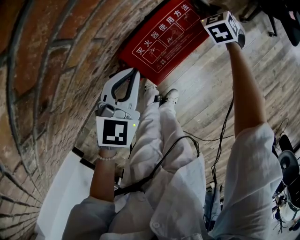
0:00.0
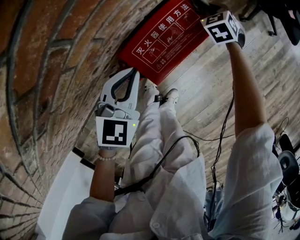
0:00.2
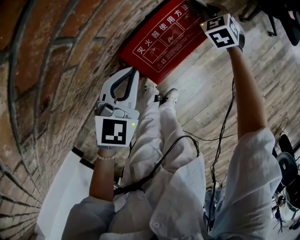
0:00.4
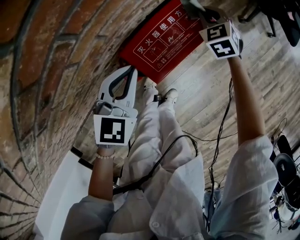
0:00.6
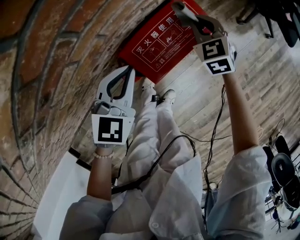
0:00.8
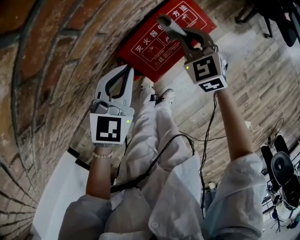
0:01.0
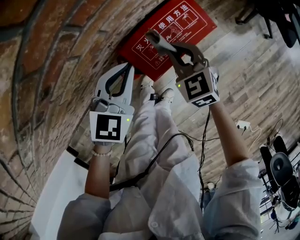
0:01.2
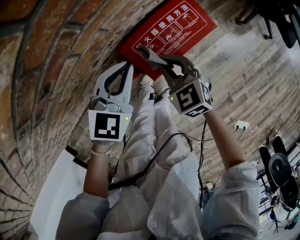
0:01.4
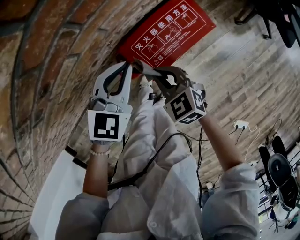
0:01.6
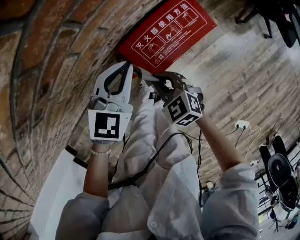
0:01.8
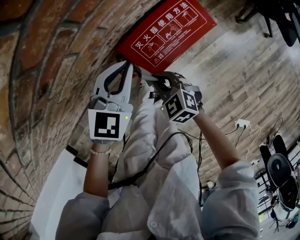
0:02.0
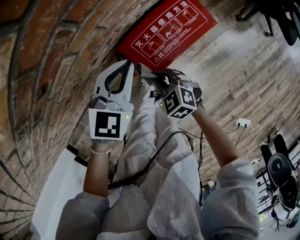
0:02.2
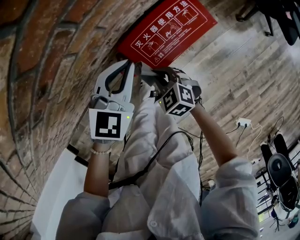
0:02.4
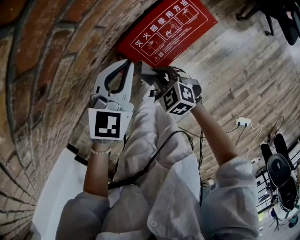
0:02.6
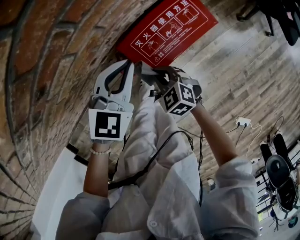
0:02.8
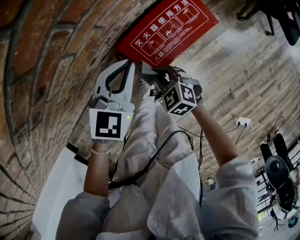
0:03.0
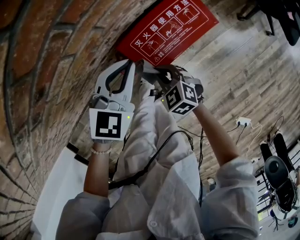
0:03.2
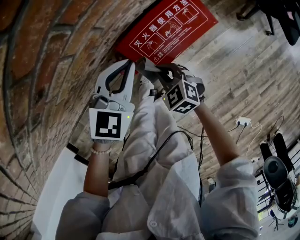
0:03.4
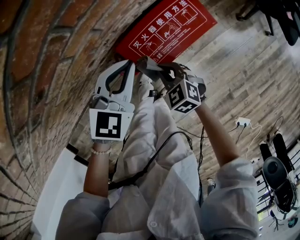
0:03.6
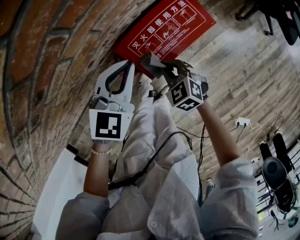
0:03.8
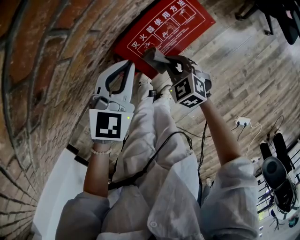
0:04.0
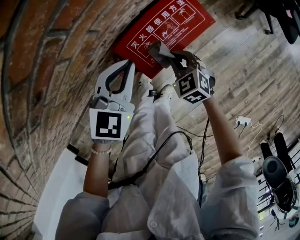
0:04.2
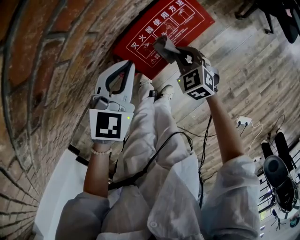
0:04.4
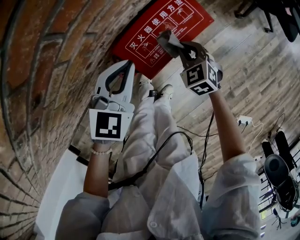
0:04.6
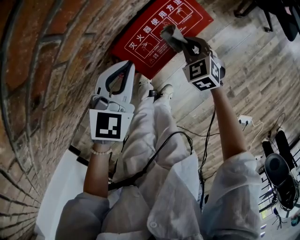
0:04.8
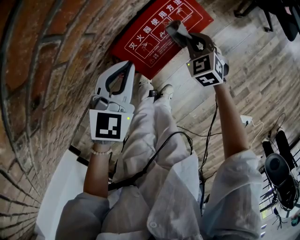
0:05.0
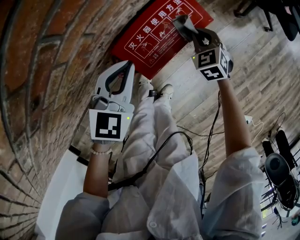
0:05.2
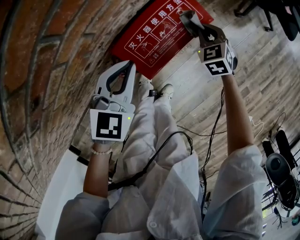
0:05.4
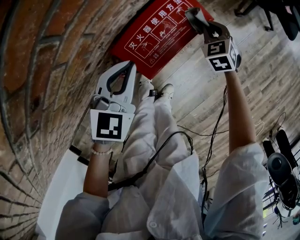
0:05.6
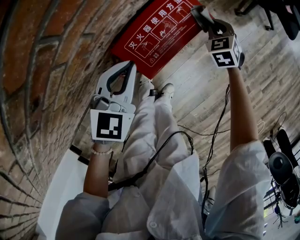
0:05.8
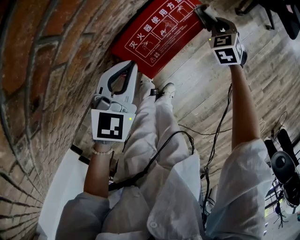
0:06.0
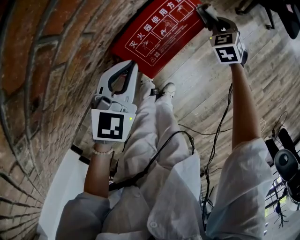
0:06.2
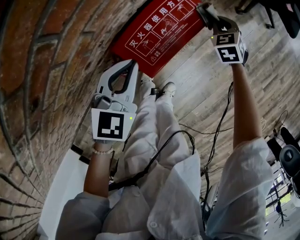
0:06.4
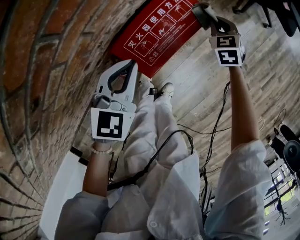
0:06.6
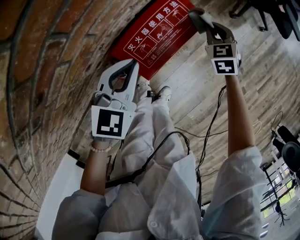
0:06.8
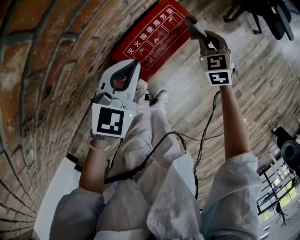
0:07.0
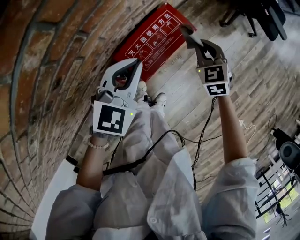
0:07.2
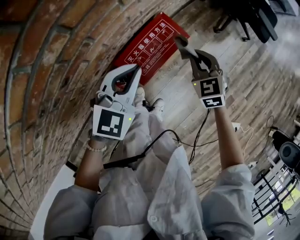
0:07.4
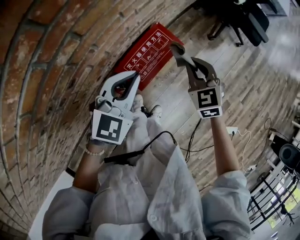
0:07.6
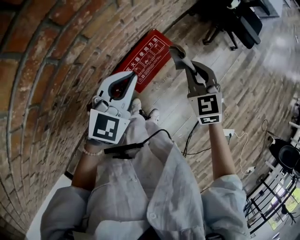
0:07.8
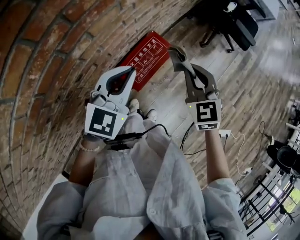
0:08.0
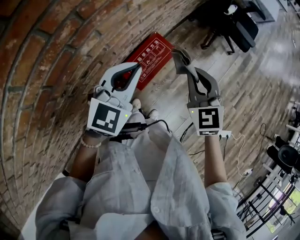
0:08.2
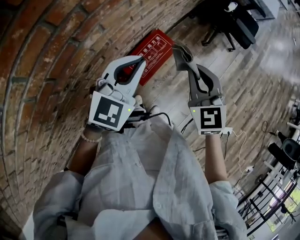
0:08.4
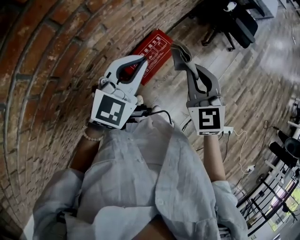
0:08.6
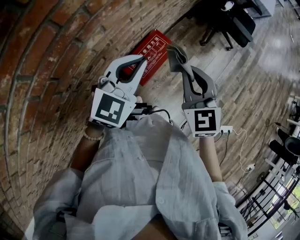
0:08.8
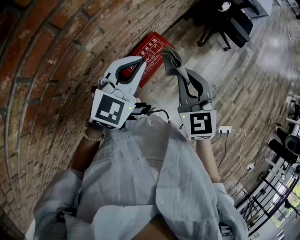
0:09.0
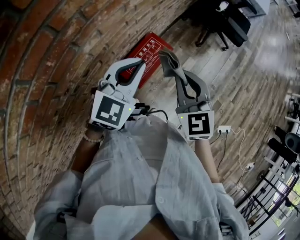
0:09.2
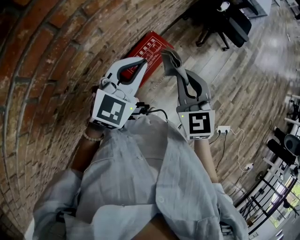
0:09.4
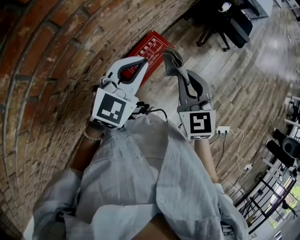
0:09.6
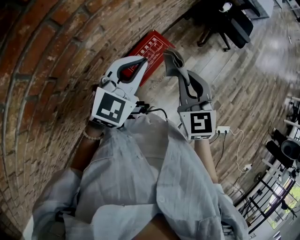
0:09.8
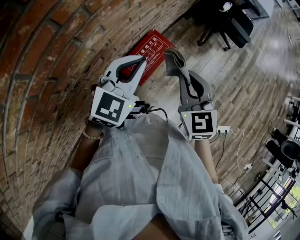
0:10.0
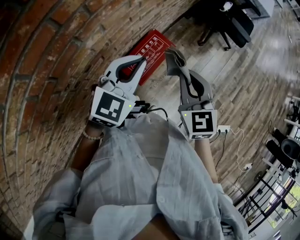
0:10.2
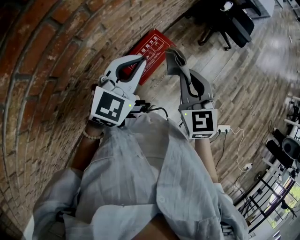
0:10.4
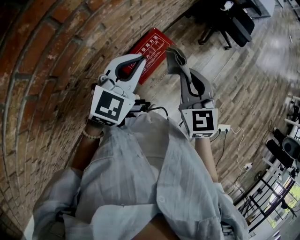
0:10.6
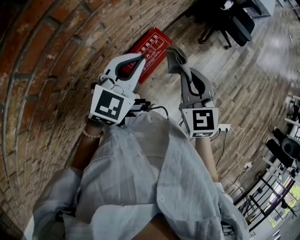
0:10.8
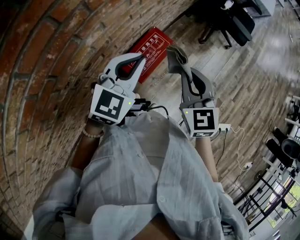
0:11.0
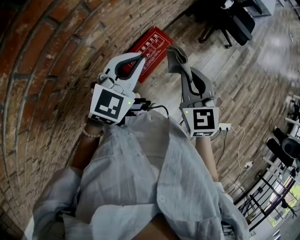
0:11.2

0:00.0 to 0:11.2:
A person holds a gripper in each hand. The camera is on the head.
0:00.0 to 0:01.6: The right gripper moves about 35 cm, and swivels approximately 40 degrees.
0:01.6 to 0:03.2: The right gripper goes approximately 5 cm downward.
0:03.2 to 0:04.8: The right gripper moves to the right and forward, some 15 cm, and rotates some 20 degrees.
0:04.8 to 0:06.4: The right gripper heads forward and to the right, covering roughly 15 cm.
0:06.4 to 0:08.0: The left gripper is displaced upward by some 30 cm; the right gripper shifts roughly 40 cm upward and backward, and changes its angle by some 30 degrees.
0:08.0 to 0:09.6: The left gripper shifts by roughly 5 cm; the right gripper travels backward and upward by roughly 10 cm.
0:09.6 to 0:11.2: The grippers move only a little.

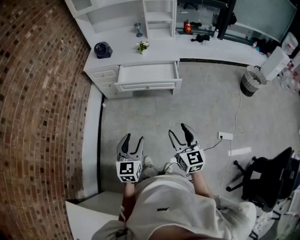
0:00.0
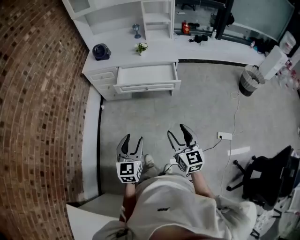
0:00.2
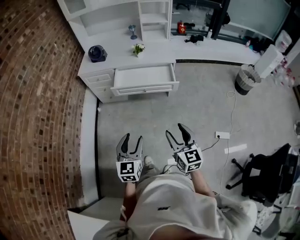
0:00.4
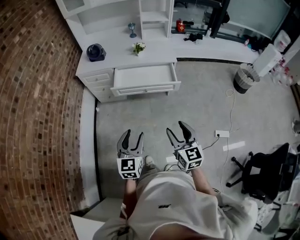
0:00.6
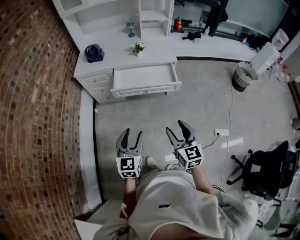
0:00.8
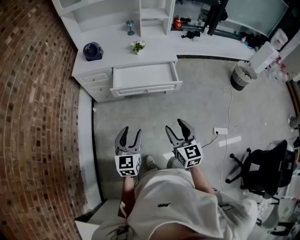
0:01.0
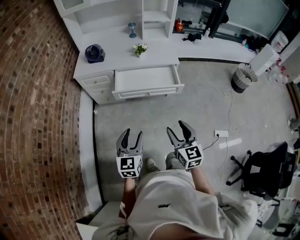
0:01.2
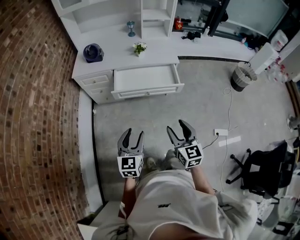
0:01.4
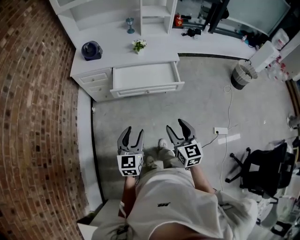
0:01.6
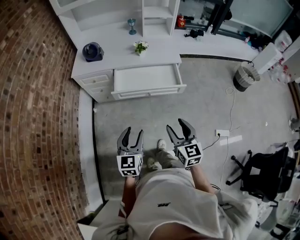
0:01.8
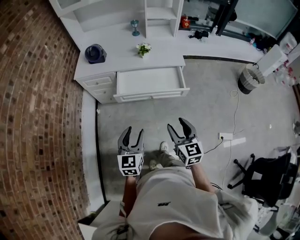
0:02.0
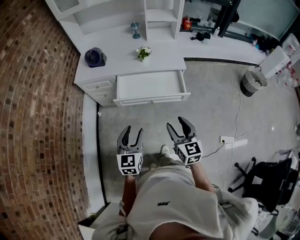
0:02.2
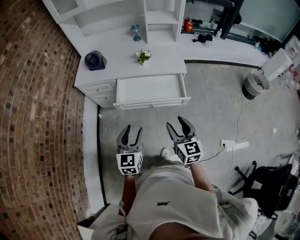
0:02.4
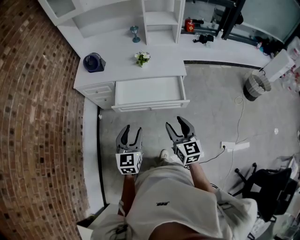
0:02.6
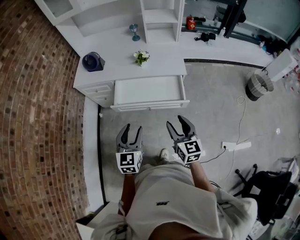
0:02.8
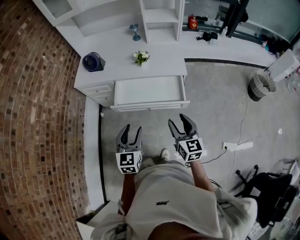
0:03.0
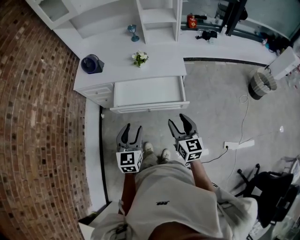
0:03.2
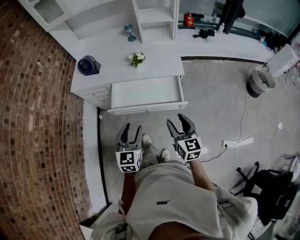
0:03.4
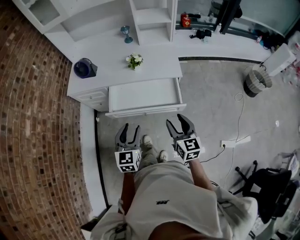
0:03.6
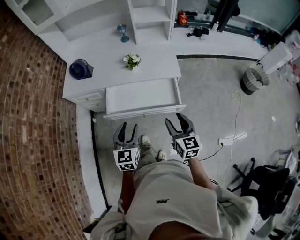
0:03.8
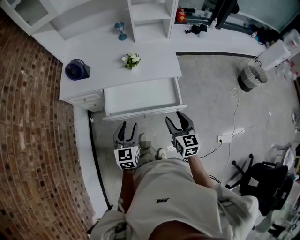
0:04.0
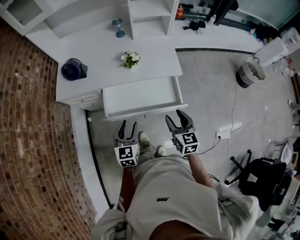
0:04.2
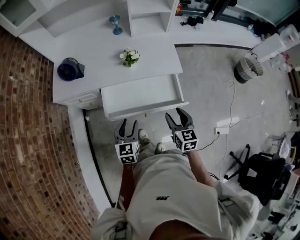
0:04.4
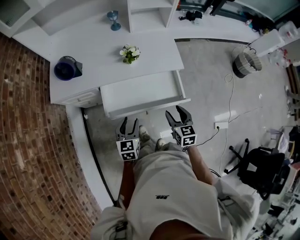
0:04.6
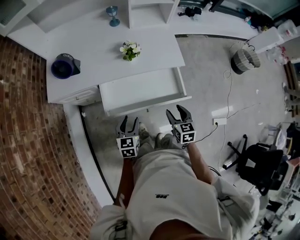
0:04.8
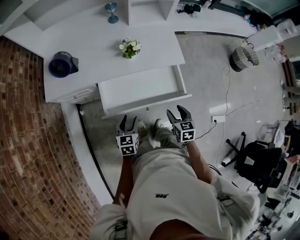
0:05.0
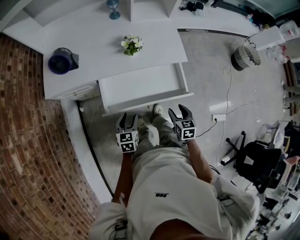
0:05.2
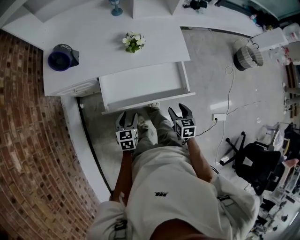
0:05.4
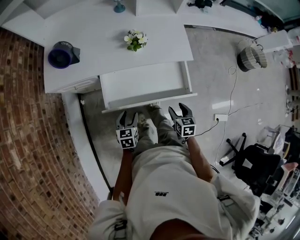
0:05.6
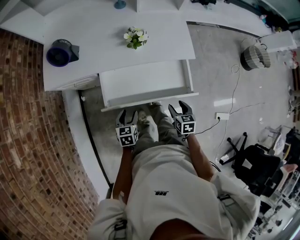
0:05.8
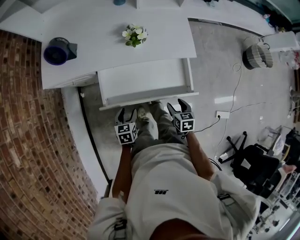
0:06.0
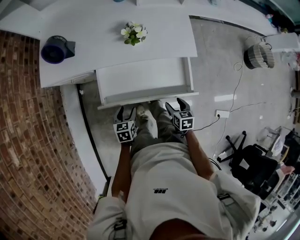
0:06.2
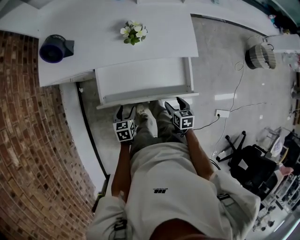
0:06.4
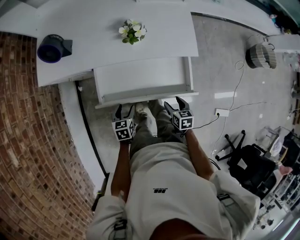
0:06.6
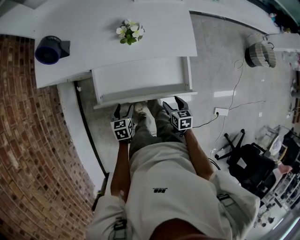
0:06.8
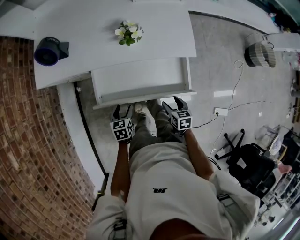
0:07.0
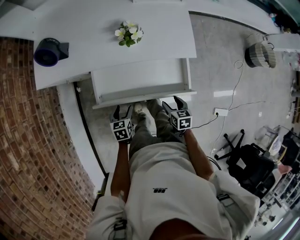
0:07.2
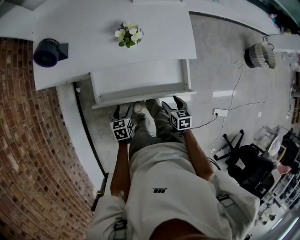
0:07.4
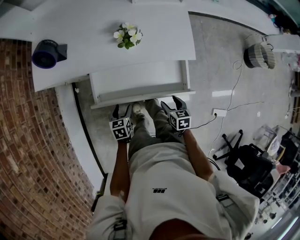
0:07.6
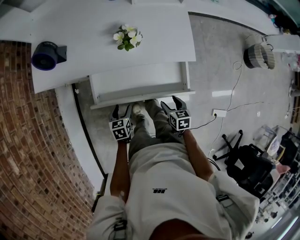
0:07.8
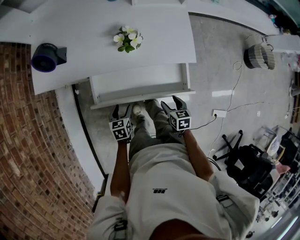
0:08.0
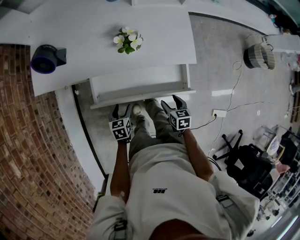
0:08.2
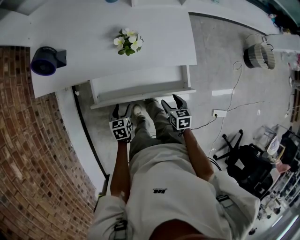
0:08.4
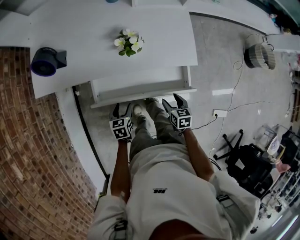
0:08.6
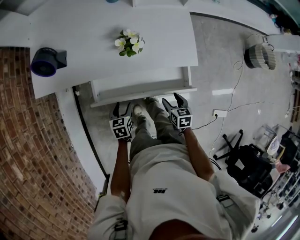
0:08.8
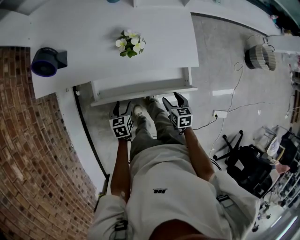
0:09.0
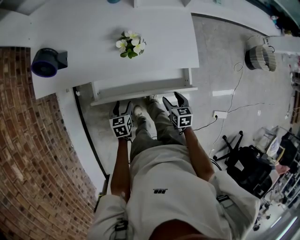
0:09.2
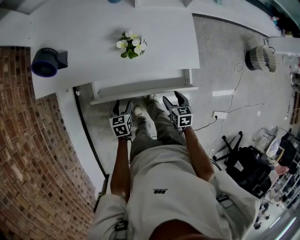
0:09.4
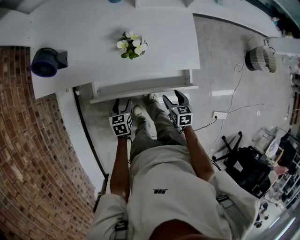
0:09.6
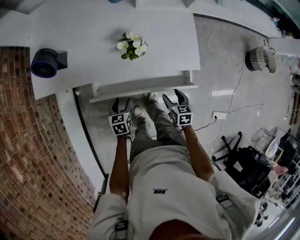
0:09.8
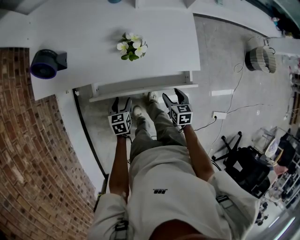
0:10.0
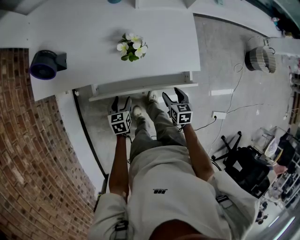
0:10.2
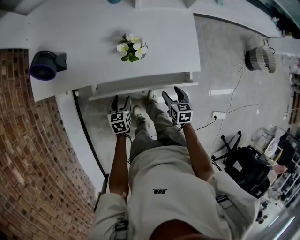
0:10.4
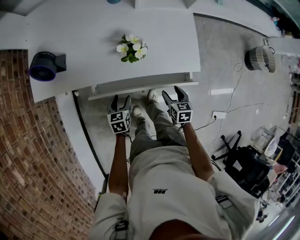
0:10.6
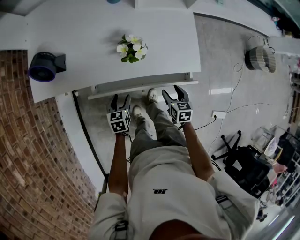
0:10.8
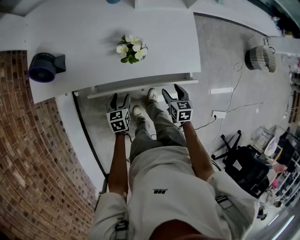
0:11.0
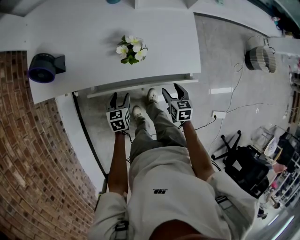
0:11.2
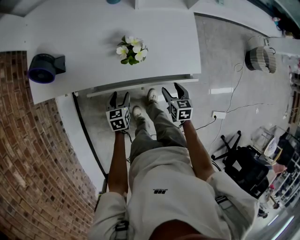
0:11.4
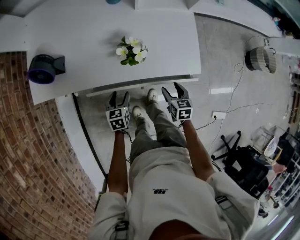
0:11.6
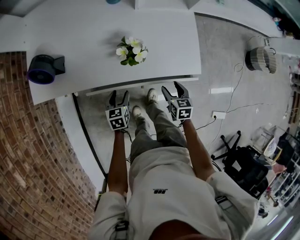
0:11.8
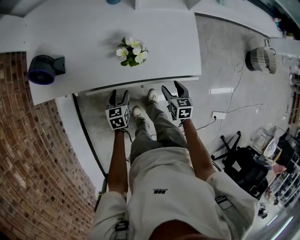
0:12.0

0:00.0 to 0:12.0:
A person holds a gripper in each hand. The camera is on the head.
0:00.0 to 0:01.6: The grippers both shift forward and to the left by about 20 cm.
0:01.6 to 0:03.0: Both grippers travel together forward and to the right, approximately 20 cm.
0:03.0 to 0:04.4: Both grippers move forward and downward, about 20 cm.
0:04.4 to 0:06.0: Both grippers travel together downward, some 20 cm. The right gripper turns by approximately 20 degrees. The left gripper changes its angle by approximately 20 degrees.
0:06.0 to 0:07.6: The left gripper changes place by some 5 cm.
0:07.6 to 0:09.0: Both grippers move forward, some 5 cm.
0:09.0 to 0:10.4: Both grippers travel together forward, roughly 5 cm.
0:10.4 to 0:12.0: The left gripper travels forward by approximately 5 cm.

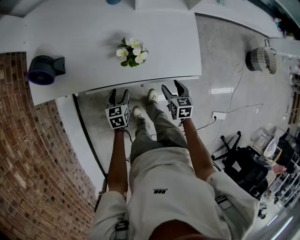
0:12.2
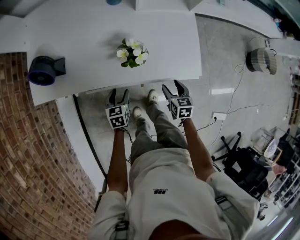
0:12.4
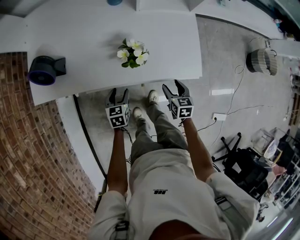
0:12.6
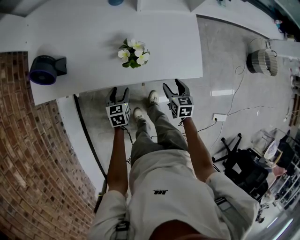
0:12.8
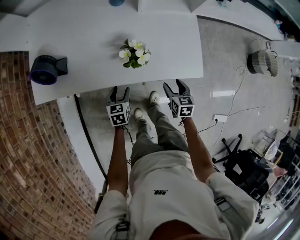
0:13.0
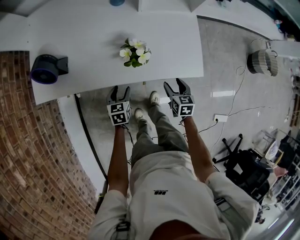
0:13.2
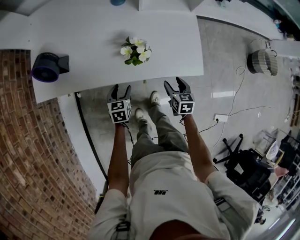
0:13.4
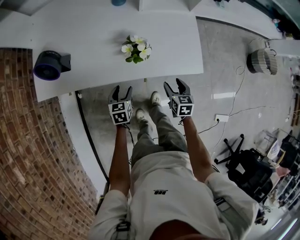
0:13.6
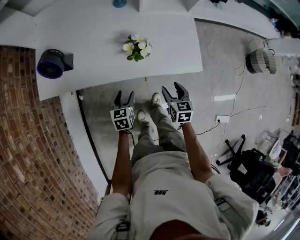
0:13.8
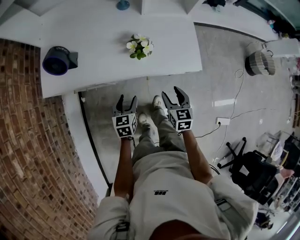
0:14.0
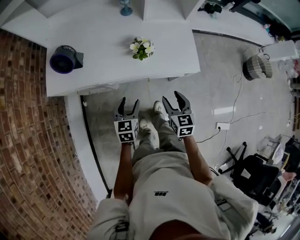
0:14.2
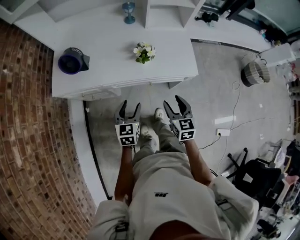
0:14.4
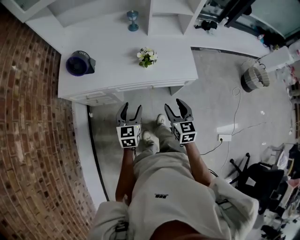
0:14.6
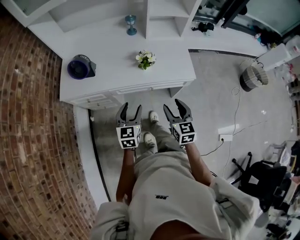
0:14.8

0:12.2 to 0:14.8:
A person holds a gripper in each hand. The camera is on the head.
0:12.2 to 0:13.4: The grippers make only small movements.
0:13.4 to 0:14.8: Both grippers travel together upward and backward, roughly 30 cm. The right gripper changes its angle by roughly 20 degrees; the left gripper rotates approximately 30 degrees.
